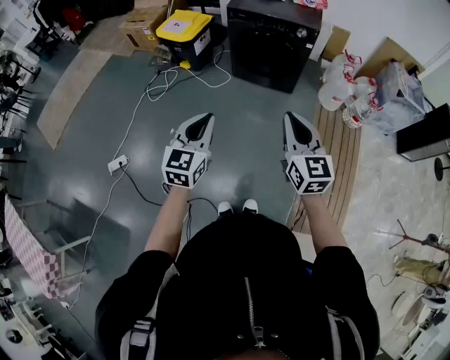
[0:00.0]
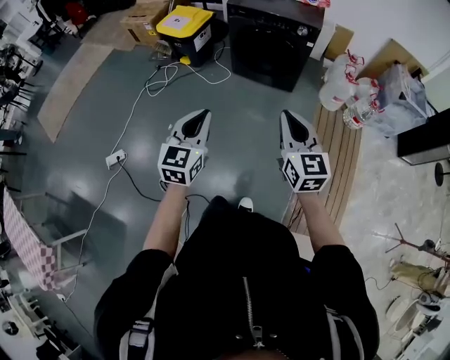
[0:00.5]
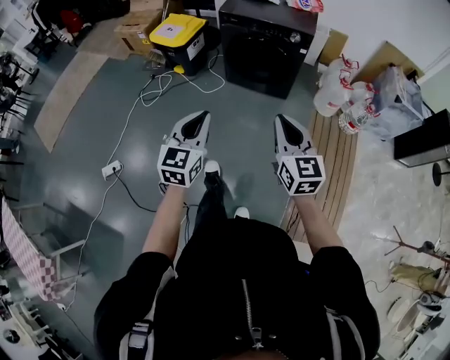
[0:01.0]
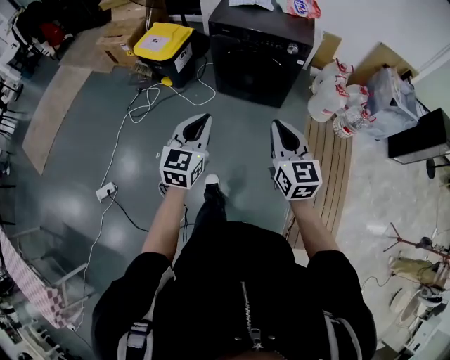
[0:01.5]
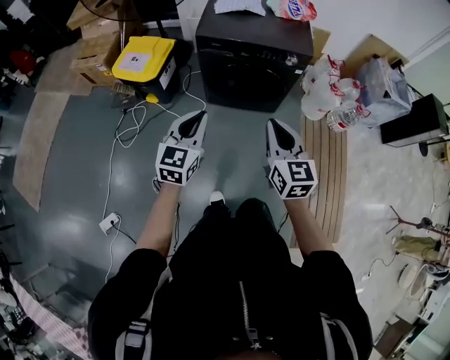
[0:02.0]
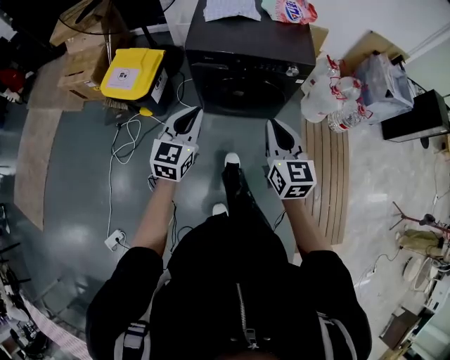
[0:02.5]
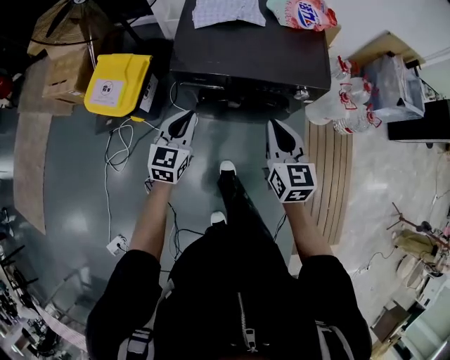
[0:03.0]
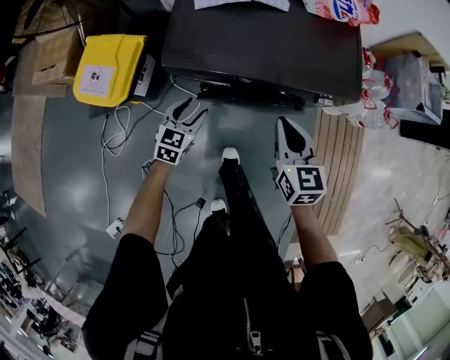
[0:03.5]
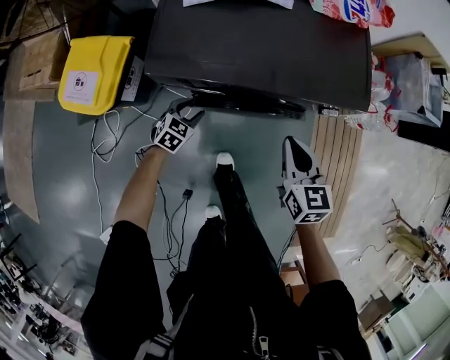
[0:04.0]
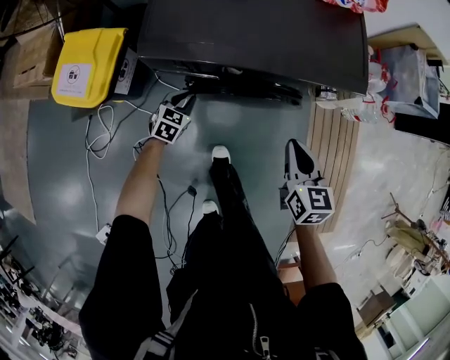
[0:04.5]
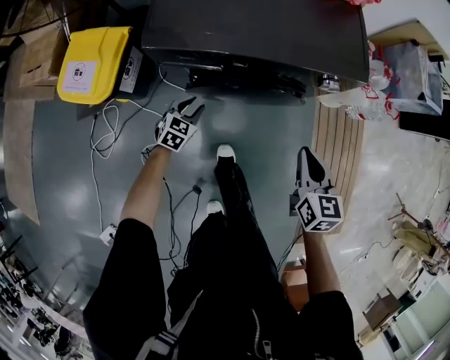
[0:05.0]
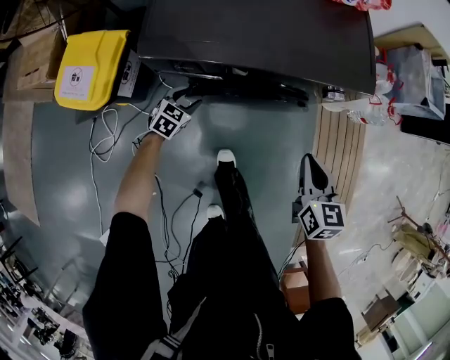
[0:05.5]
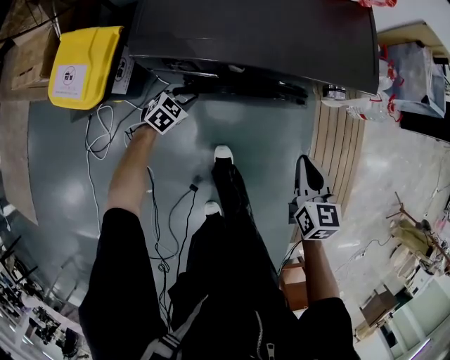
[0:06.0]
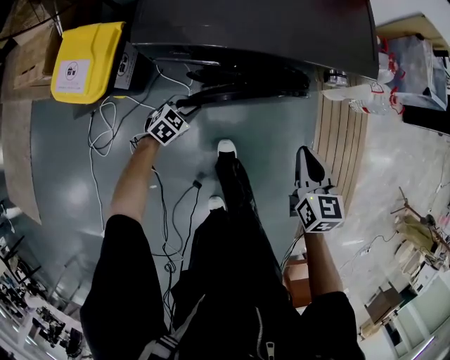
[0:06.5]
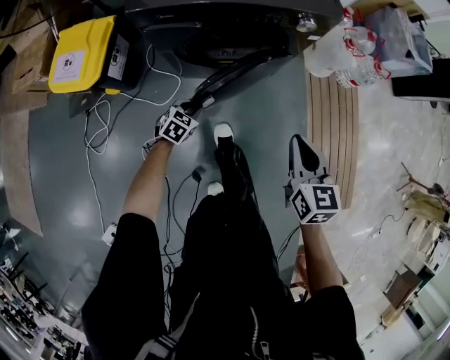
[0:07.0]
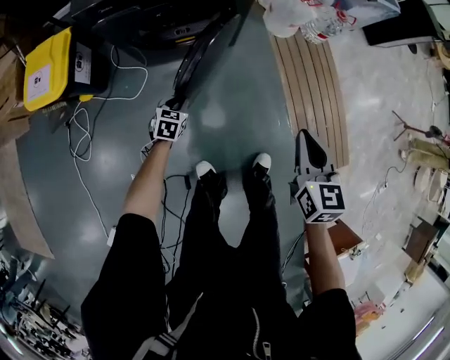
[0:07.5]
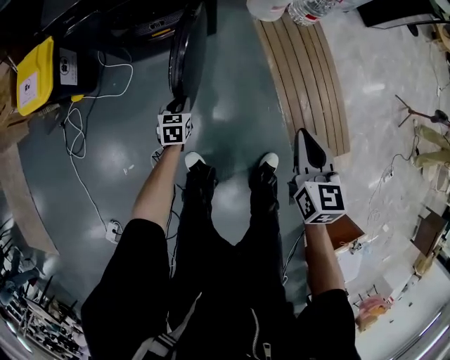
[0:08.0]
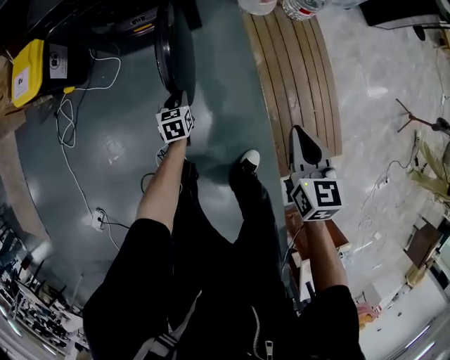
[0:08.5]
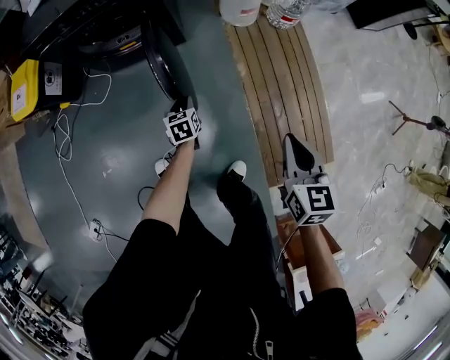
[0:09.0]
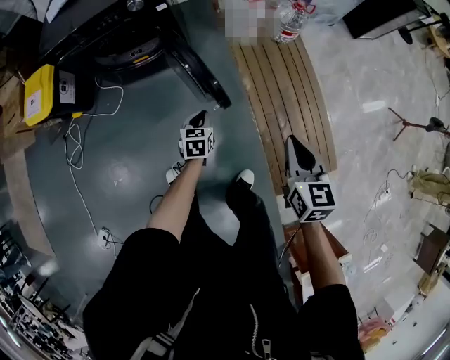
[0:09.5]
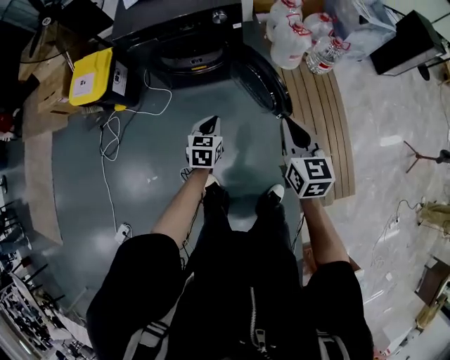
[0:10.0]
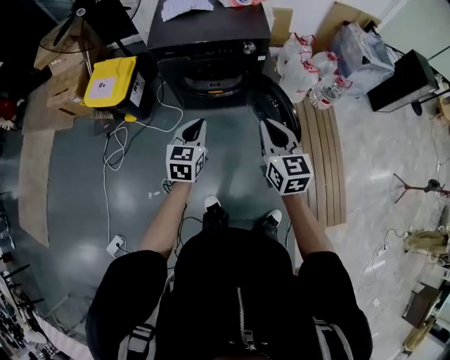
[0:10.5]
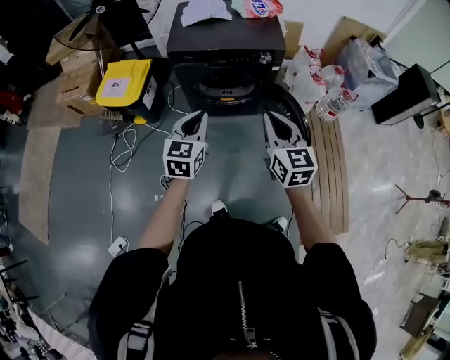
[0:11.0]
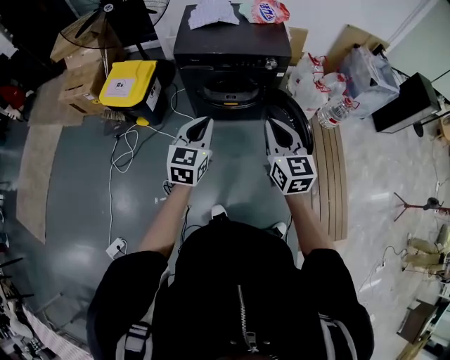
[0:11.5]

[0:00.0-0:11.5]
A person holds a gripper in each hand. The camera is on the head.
0:00.0 to 0:02.0: Both grippers travel together forward, about 35 cm.
0:02.0 to 0:04.0: The two grippers travel together, forward, approximately 40 cm. The right gripper shifts some 25 cm downward, and turns by approximately 20 degrees. The left gripper shifts some 50 cm downward, points its fingers roughly 40 degrees further downward, and opens up.
0:04.0 to 0:06.0: The right gripper shifts about 10 cm to the right and backward.
0:06.0 to 0:07.5: Both grippers travel together backward and to the right, some 35 cm.
0:07.5 to 0:09.5: Both grippers move to the right, approximately 35 cm.
0:09.5 to 0:11.5: Both grippers are carried to the left, roughly 40 cm. The left gripper travels upward by approximately 40 cm, and changes its angle by approximately 30 degrees; the right gripper is displaced upward by some 20 cm, and changes its angle by roughly 30 degrees.

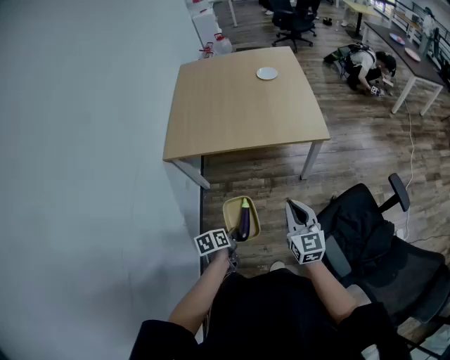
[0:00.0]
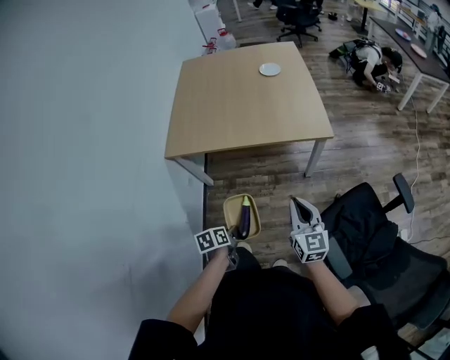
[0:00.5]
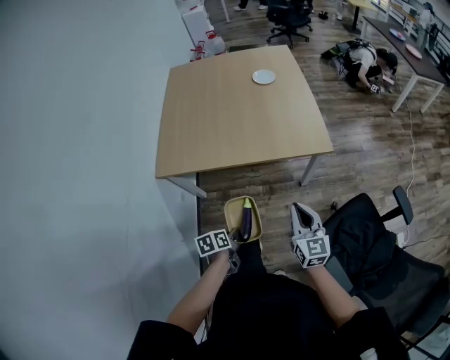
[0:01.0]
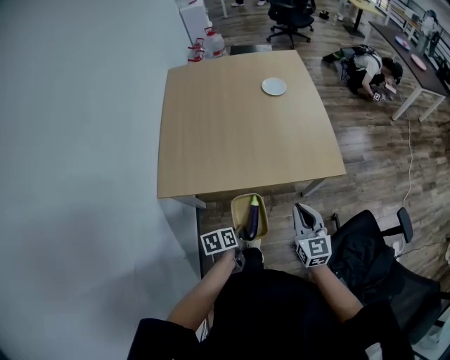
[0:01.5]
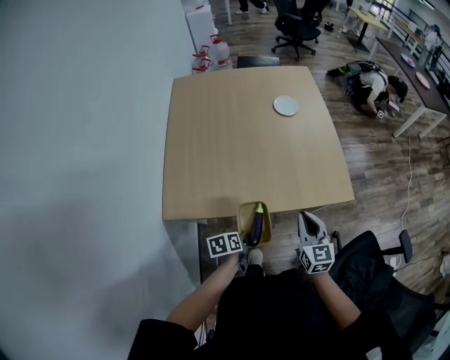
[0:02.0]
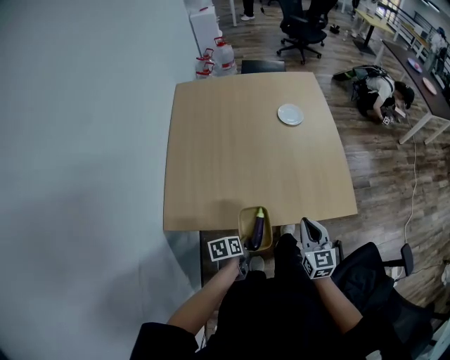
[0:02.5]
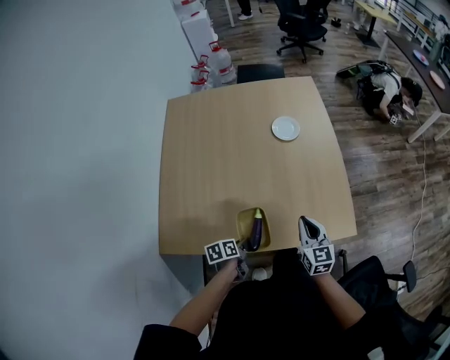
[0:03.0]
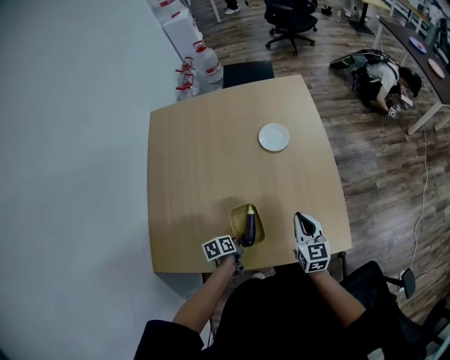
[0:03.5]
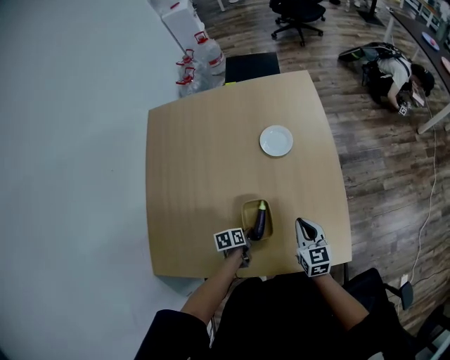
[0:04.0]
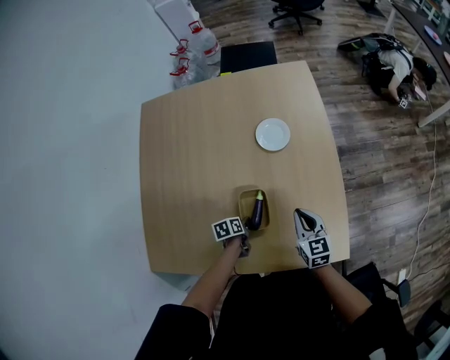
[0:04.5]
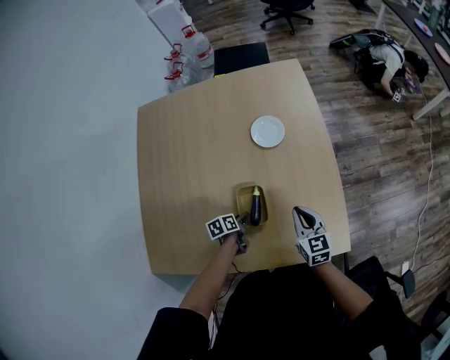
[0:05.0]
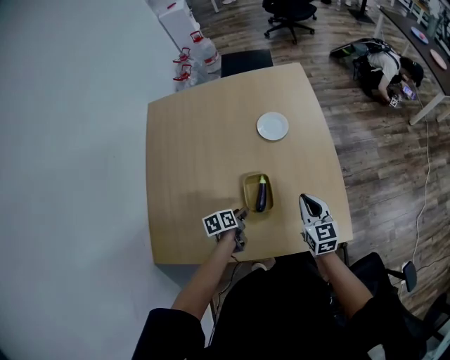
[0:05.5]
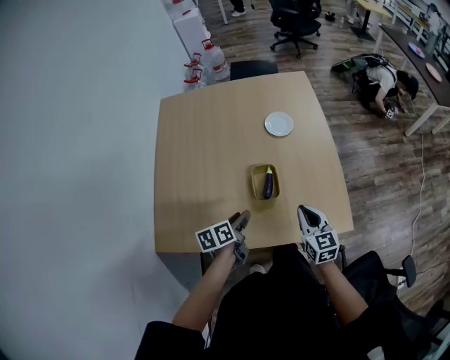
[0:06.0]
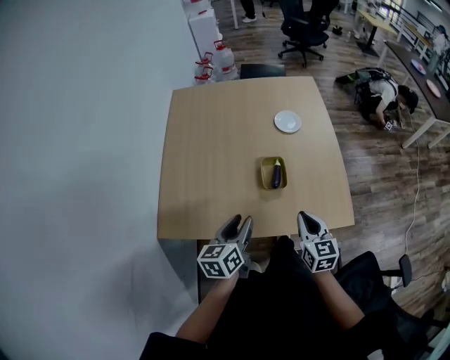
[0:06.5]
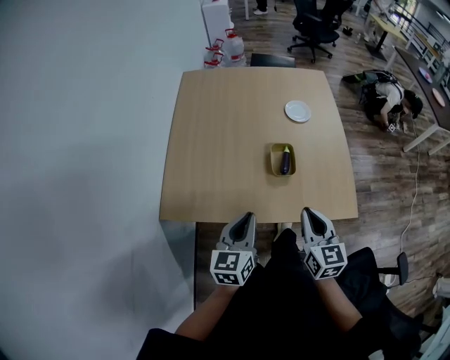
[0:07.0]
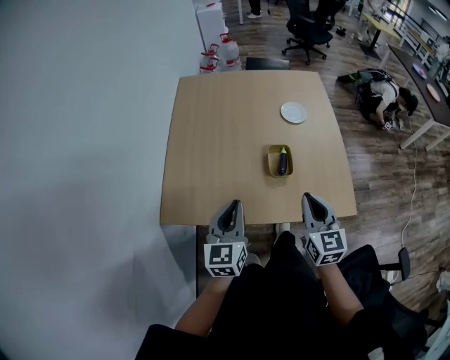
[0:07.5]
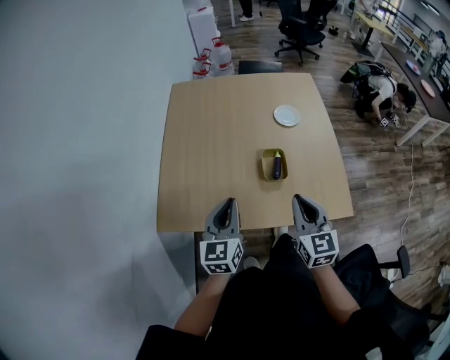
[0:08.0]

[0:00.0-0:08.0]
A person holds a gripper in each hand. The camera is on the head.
0:00.0 to 0:02.0: The two grippers go some 35 cm forward.
0:02.0 to 0:04.0: The grippers both shift forward by roughly 30 cm.
0:04.0 to 0:06.0: The left gripper shifts about 20 cm upward and backward, and changes its angle by some 20 degrees. Meanwhile the right gripper travels backward and upward by roughly 15 cm.
0:06.0 to 0:08.0: The grippers both shift upward, to the left and backward by approximately 20 cm. The left gripper turns by roughly 50 degrees, and closes up.

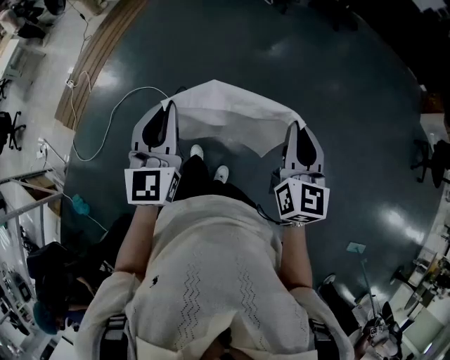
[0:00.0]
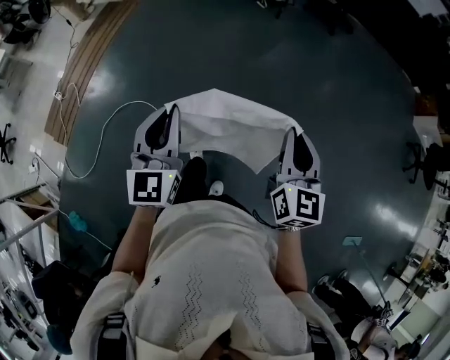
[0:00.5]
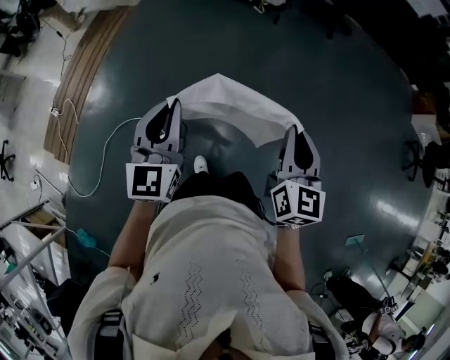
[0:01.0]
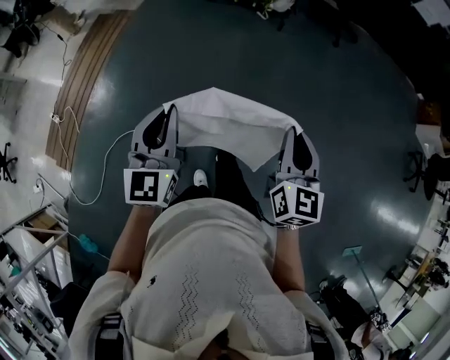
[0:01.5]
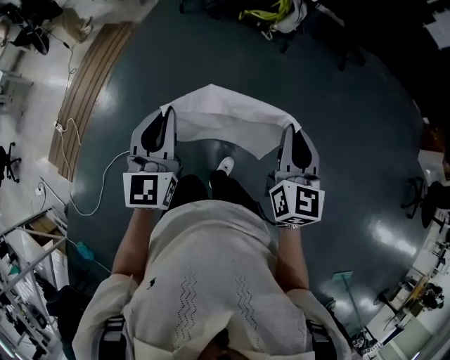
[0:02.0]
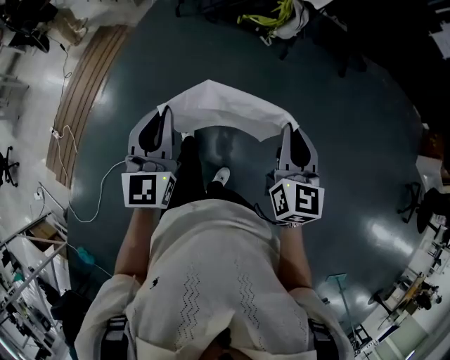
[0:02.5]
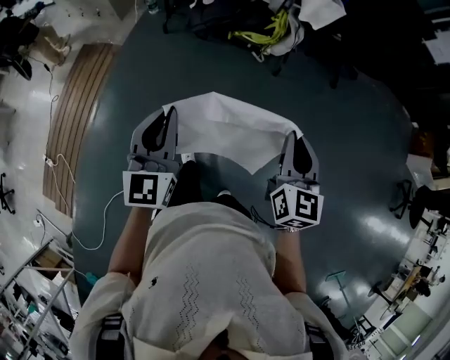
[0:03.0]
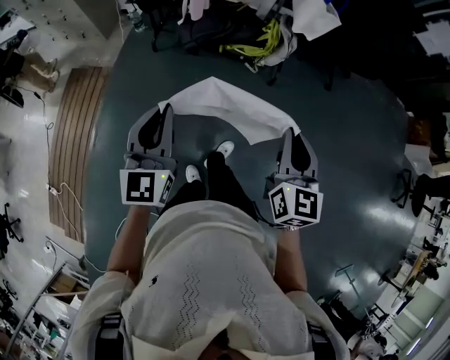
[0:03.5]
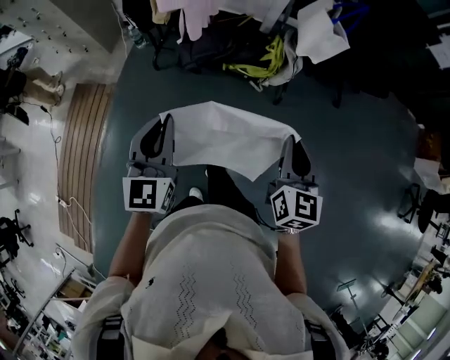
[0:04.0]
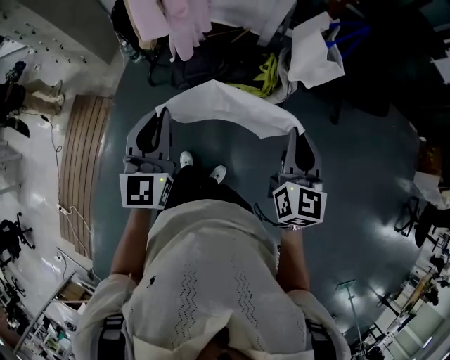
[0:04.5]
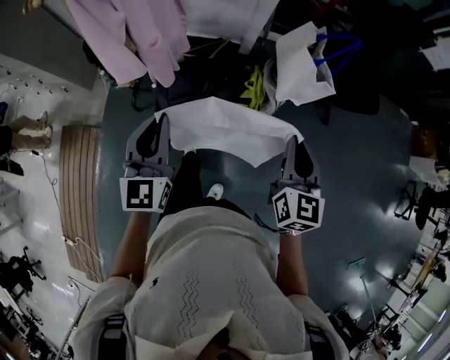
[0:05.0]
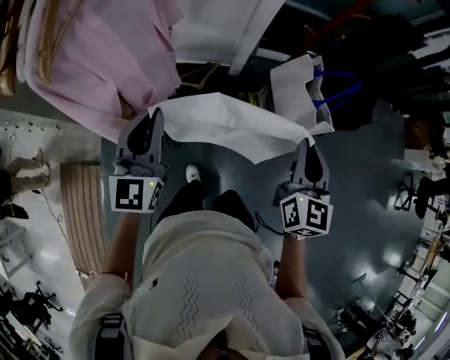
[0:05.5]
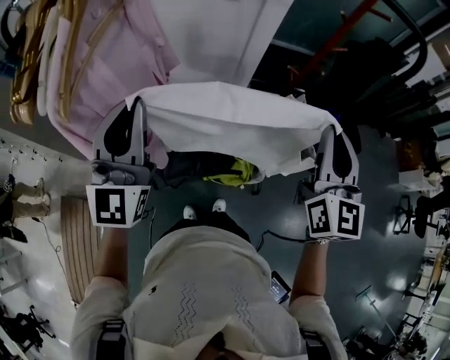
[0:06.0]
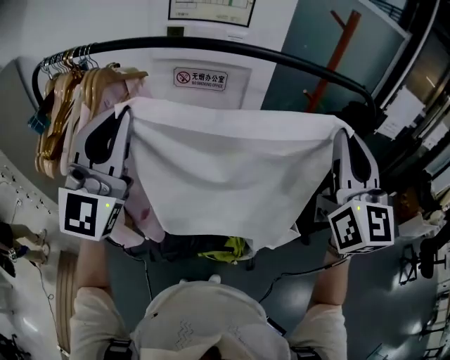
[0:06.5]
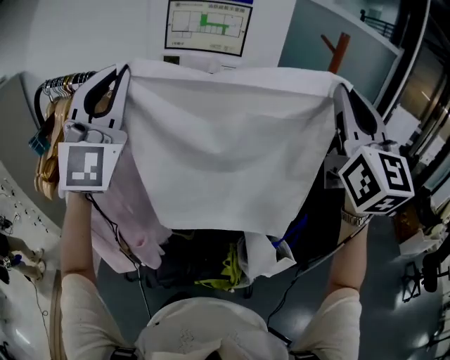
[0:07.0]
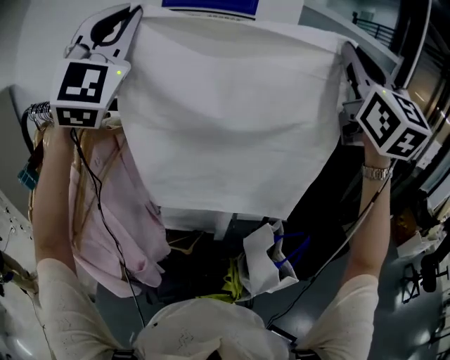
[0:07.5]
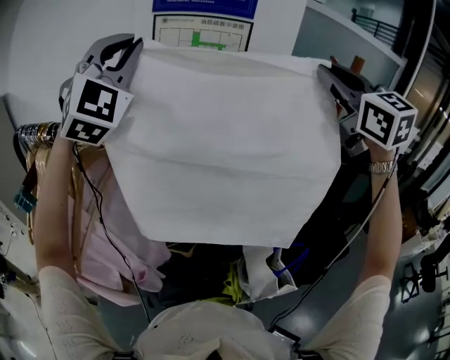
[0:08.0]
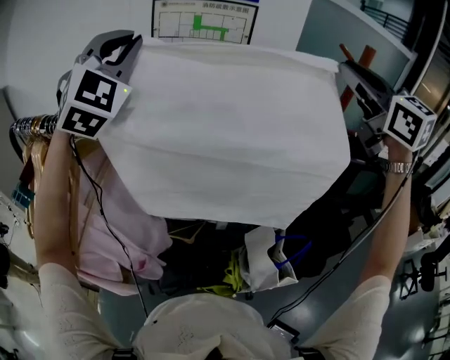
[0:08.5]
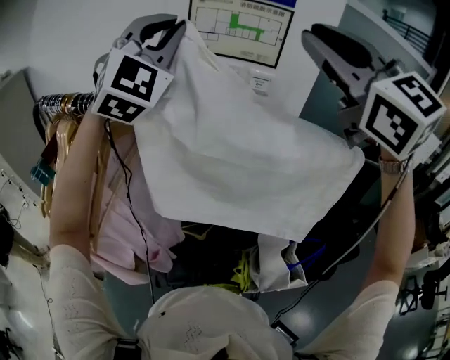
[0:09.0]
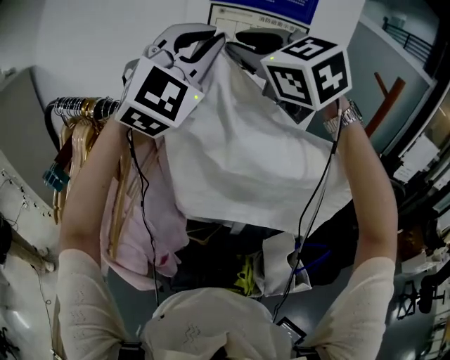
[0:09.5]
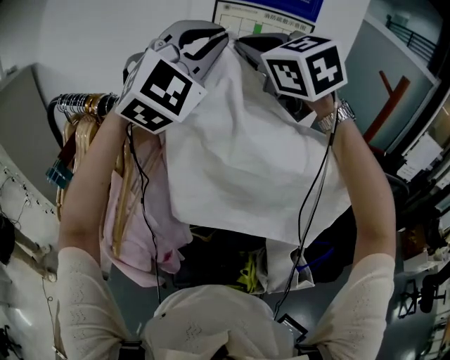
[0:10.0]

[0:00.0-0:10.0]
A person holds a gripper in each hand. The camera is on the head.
0:00.0 to 0:02.0: The two grippers travel together, forward, some 60 cm.
0:02.0 to 0:04.0: The pair of grippers is taken forward, roughly 60 cm.
0:04.0 to 0:06.0: Both grippers are carried forward, roughly 50 cm. The right gripper heads upward, covering about 25 cm, and turns by some 30 degrees. Meanwhile the left gripper rotates roughly 30 degrees.
0:06.0 to 0:08.0: Both grippers travel together upward and forward, approximately 50 cm. The right gripper turns by about 30 degrees; the left gripper twists some 50 degrees clockwise, seen from behind.
0:08.0 to 0:10.0: The right gripper goes approximately 30 cm to the left, and changes its angle by about 20 degrees.
